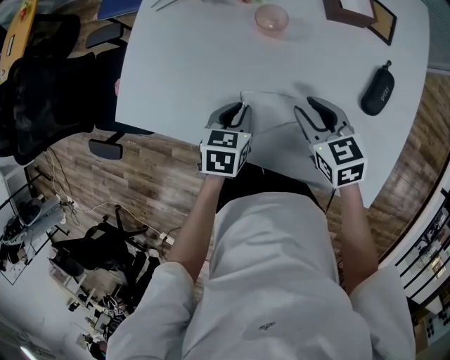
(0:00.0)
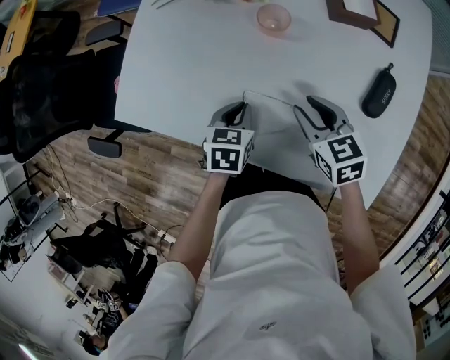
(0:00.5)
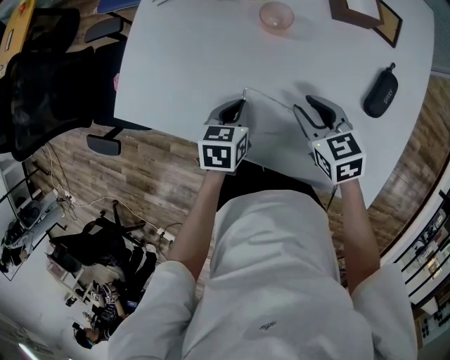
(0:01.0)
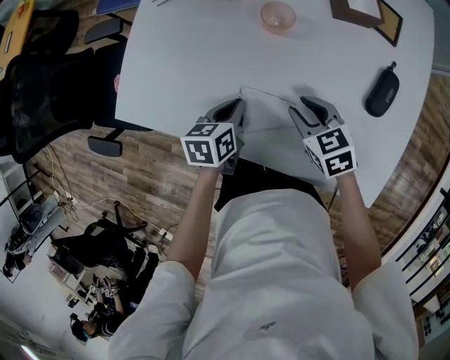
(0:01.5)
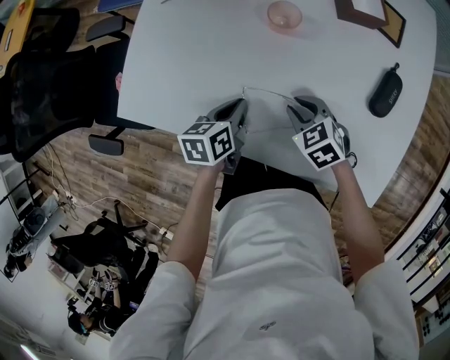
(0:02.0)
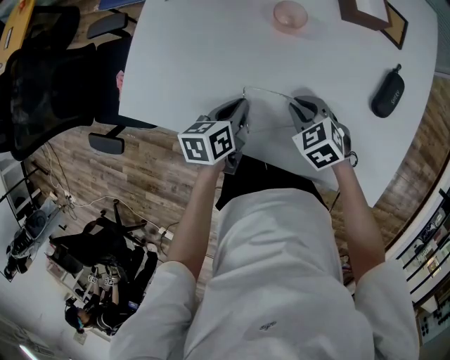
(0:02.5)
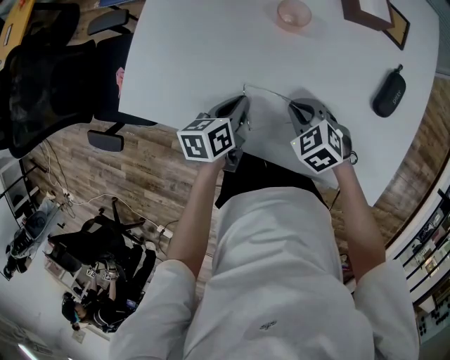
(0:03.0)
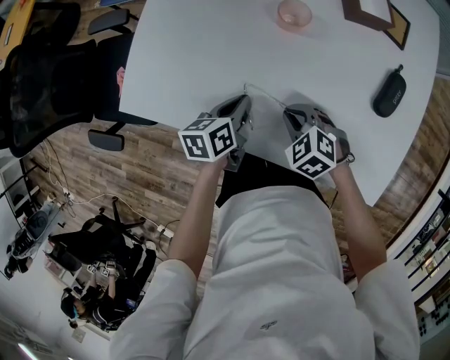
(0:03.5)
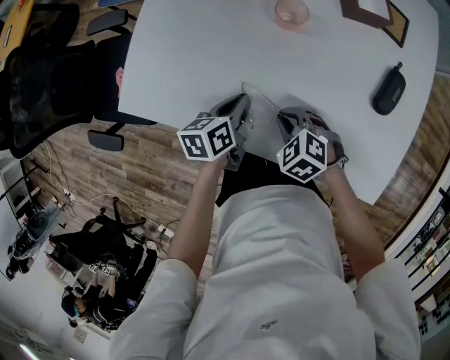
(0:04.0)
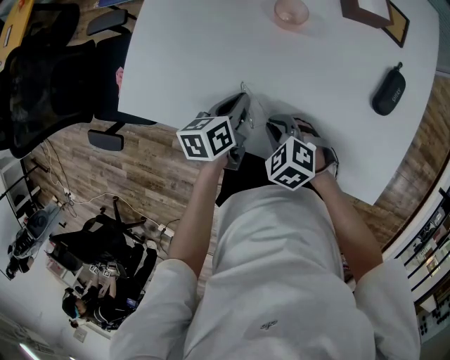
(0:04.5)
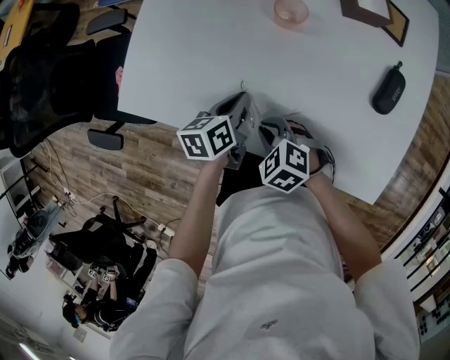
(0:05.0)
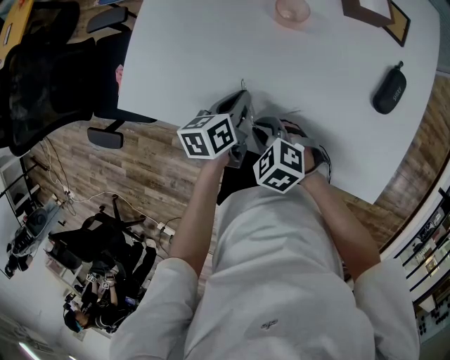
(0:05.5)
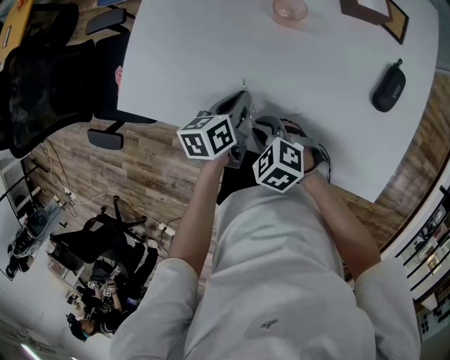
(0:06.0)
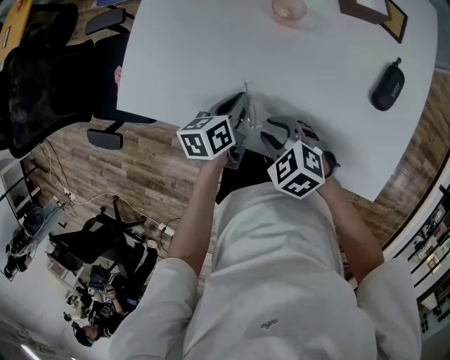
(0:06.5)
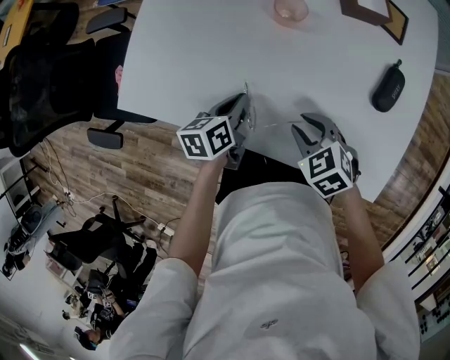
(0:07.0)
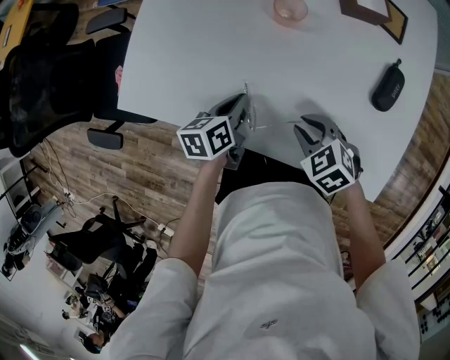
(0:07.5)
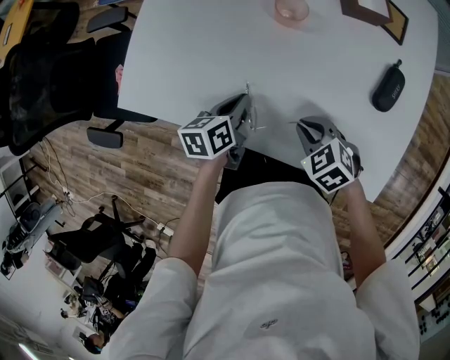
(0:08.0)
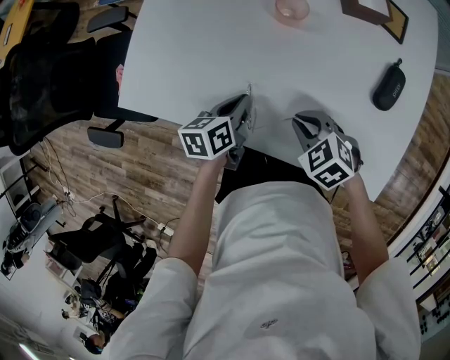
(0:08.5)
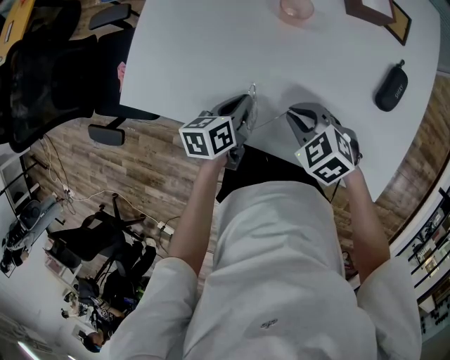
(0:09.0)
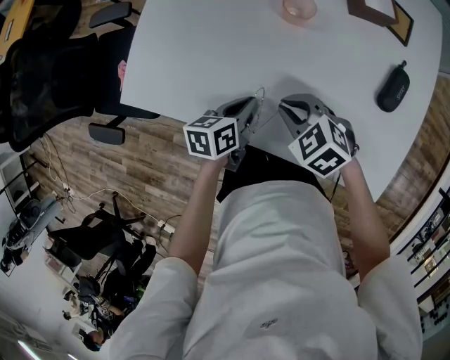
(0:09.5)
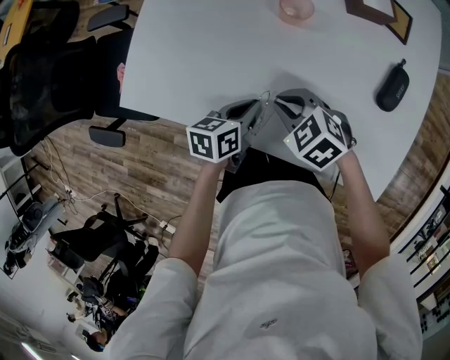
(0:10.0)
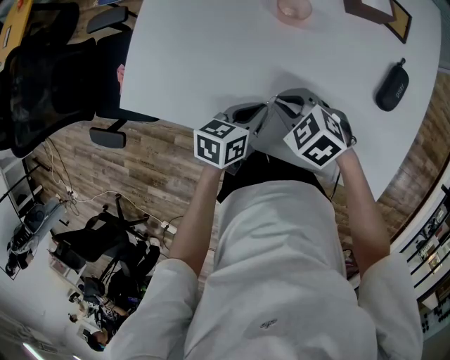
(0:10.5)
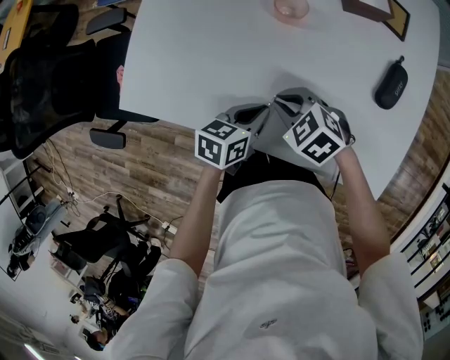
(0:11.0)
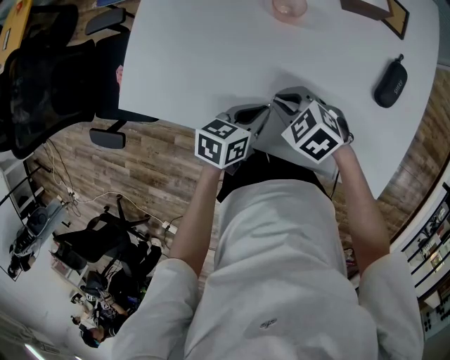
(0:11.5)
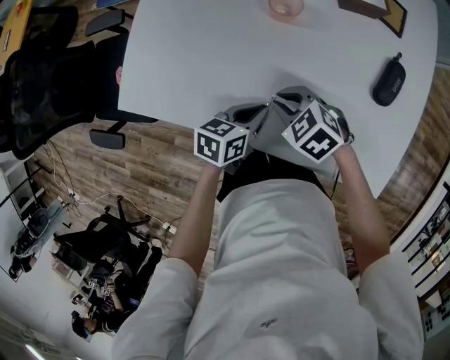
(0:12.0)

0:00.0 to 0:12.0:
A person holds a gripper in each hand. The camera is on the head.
0:00.0 to 0:02.0: The left gripper swivels some 30 degrees. The right gripper travels downward by about 10 cm, and rotates some 20 degrees.
0:02.0 to 0:04.0: The right gripper shifts by approximately 5 cm.
0:04.0 to 0:06.0: The right gripper travels to the left by about 5 cm.
0:06.0 to 0:08.0: The right gripper travels to the right by approximately 10 cm.
0:08.0 to 0:10.0: The right gripper goes about 10 cm to the left and forward.
0:10.0 to 0:12.0: The grippers move only a little.

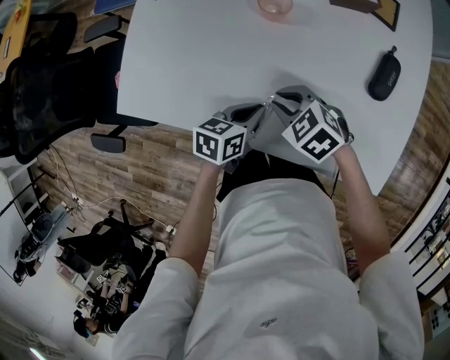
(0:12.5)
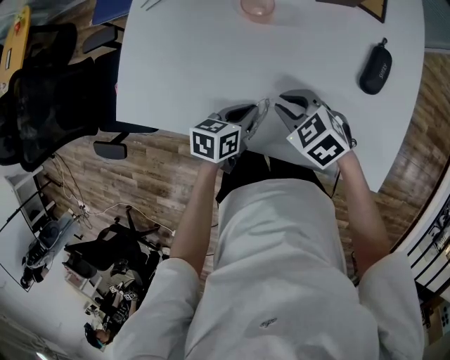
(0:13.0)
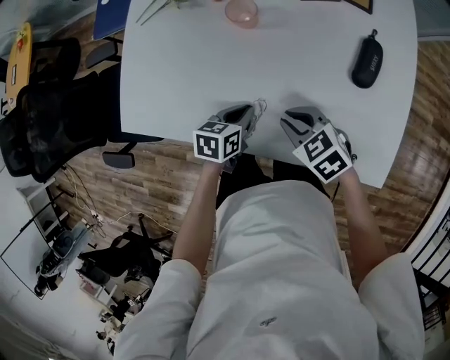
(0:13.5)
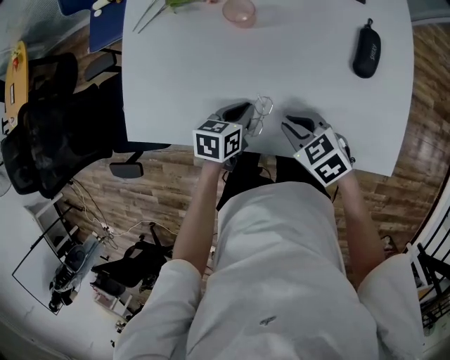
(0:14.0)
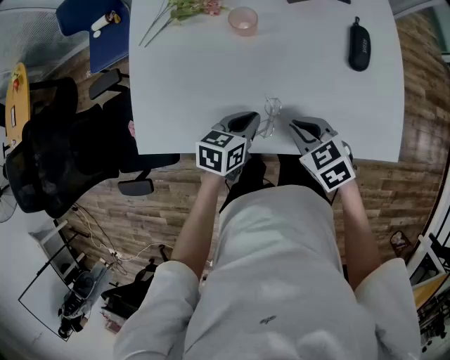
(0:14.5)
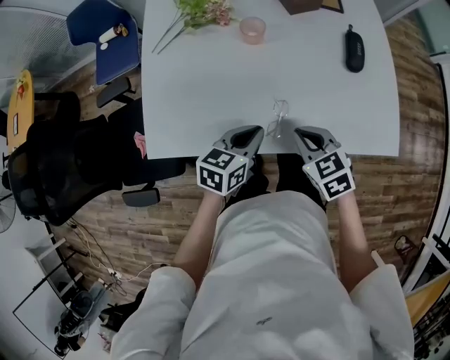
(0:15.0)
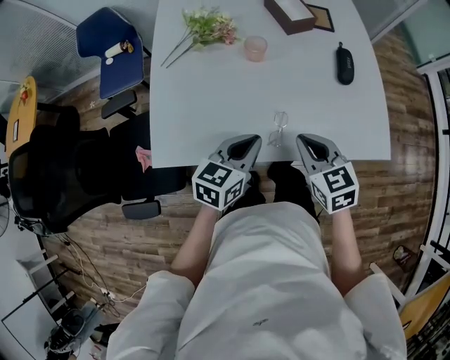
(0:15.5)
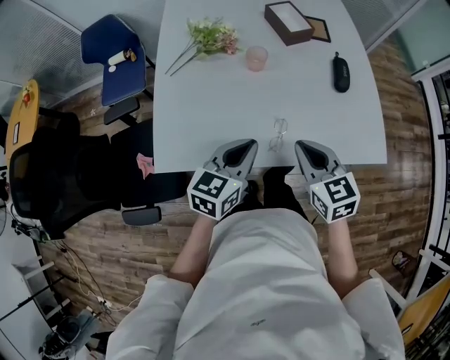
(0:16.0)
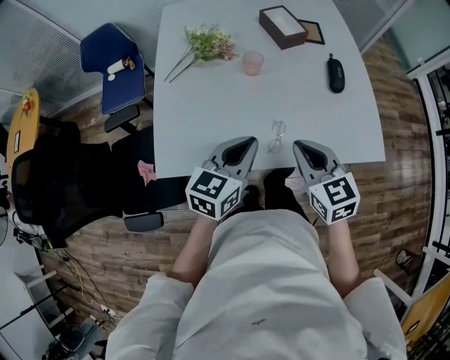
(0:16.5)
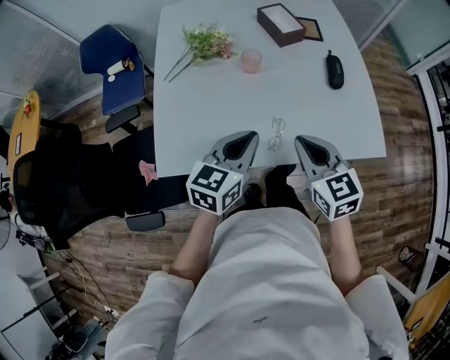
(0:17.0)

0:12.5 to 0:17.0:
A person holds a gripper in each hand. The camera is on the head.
0:12.5 to 0:14.5: The right gripper shifts approximately 5 cm backward, and swivels roughly 30 degrees.
0:14.5 to 0:17.0: The two grippers go about 15 cm upward. The right gripper rotates approximately 30 degrees. The left gripper changes its angle by roughly 30 degrees.

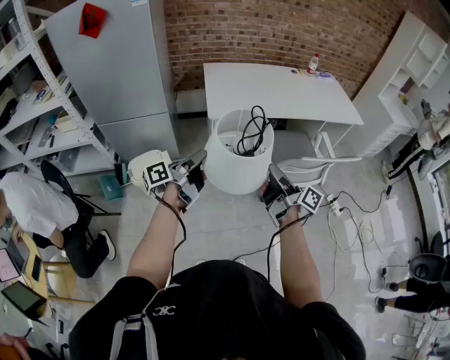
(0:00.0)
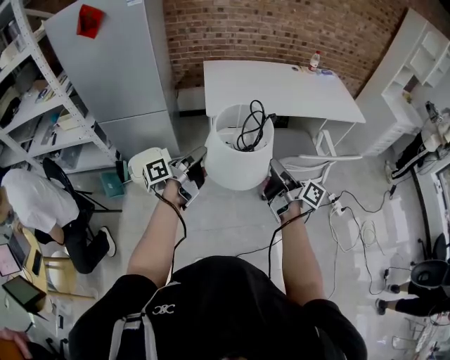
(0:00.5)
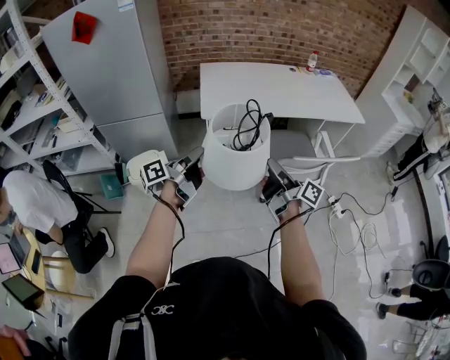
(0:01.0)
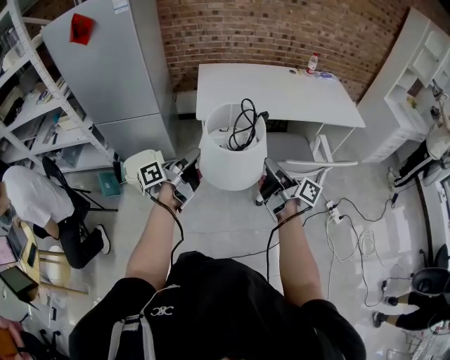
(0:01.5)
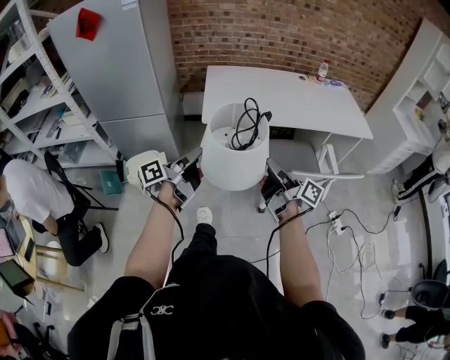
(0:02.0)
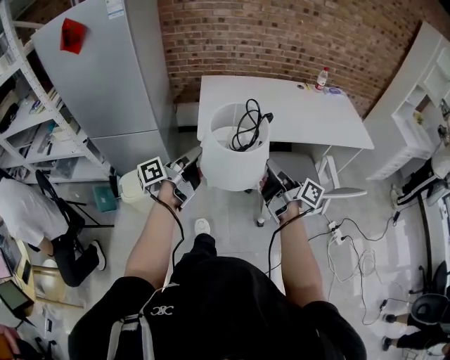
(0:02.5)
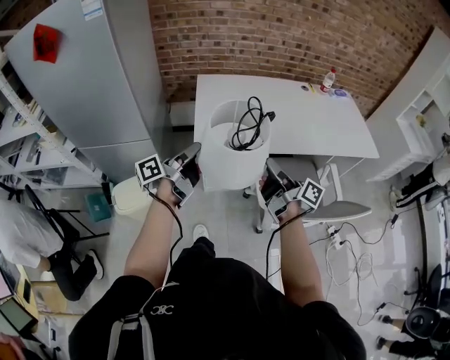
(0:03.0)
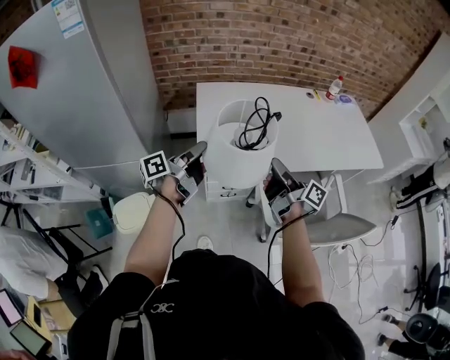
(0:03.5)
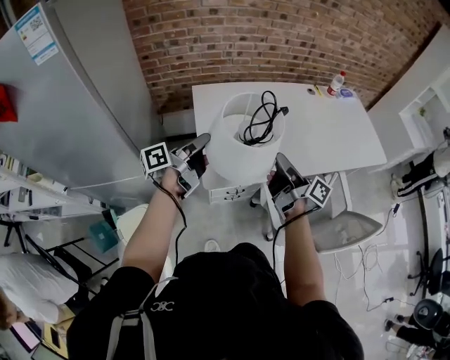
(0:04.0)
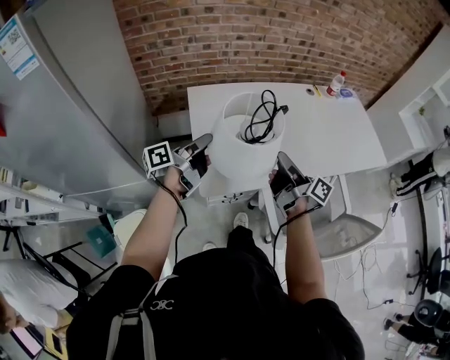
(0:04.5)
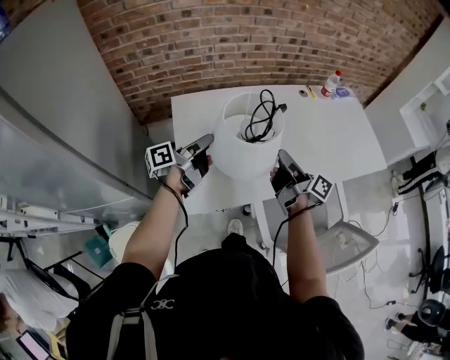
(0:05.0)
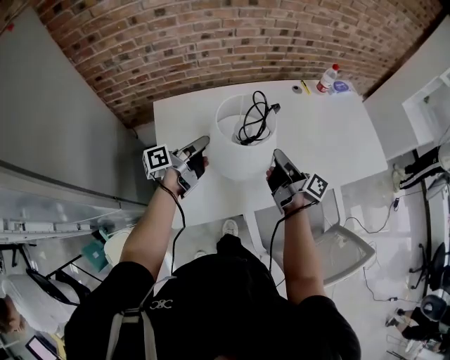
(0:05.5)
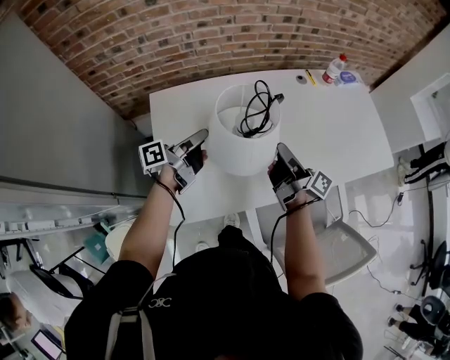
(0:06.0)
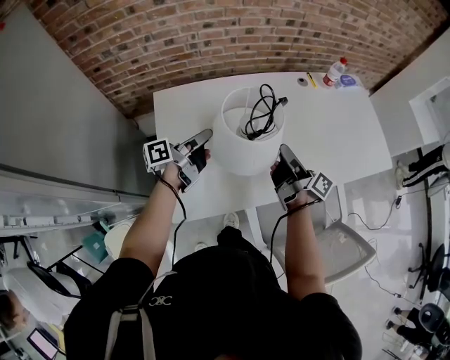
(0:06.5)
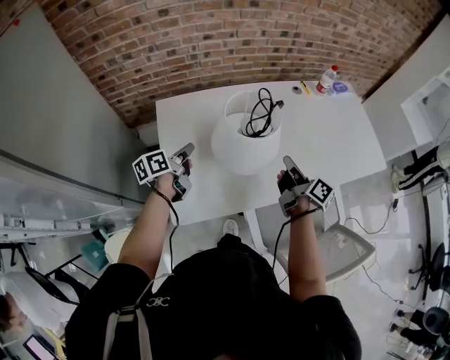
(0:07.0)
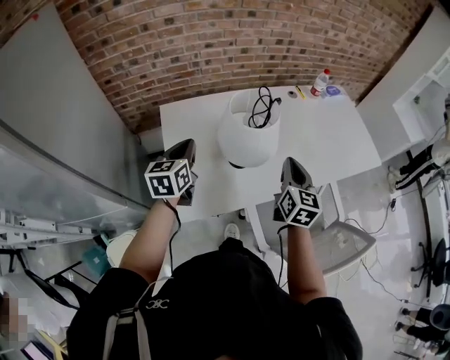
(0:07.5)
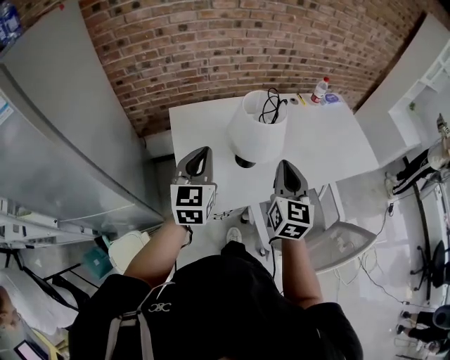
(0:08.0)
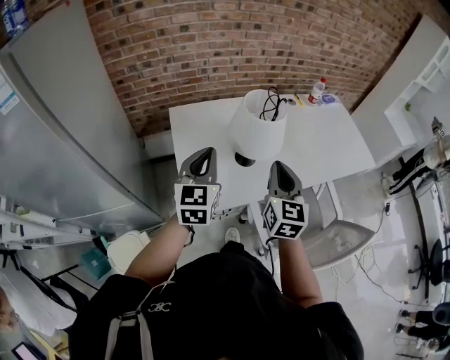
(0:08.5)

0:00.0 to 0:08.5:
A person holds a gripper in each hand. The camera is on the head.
0:00.0 to 0:02.0: The right gripper moves forward and to the right, about 10 cm, while the left gripper goes roughly 10 cm to the right.
0:02.0 to 0:04.0: The two grippers travel together, forward, some 40 cm.
0:04.0 to 0:06.5: Both grippers travel together forward and to the right, about 25 cm.
0:06.5 to 0:08.5: The right gripper shifts some 25 cm backward, upward and to the left, rolls counterclockwise, seen from behind, by some 80 degrees, and closes its fingers. The left gripper goes about 25 cm backward and upward, twists roughly 70 degrees clockwise, seen from behind, and closes.

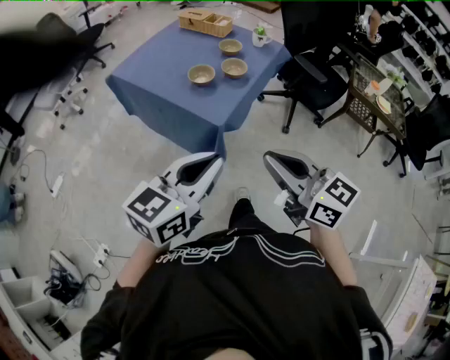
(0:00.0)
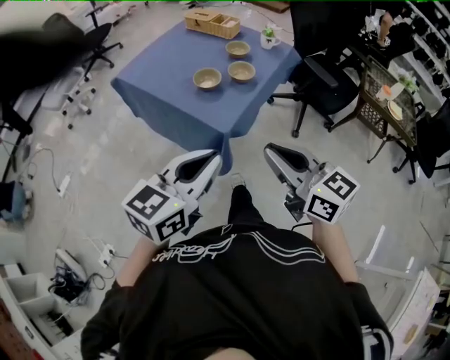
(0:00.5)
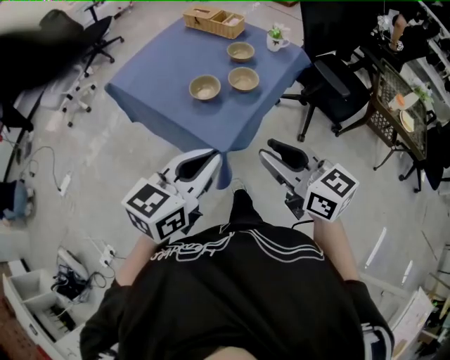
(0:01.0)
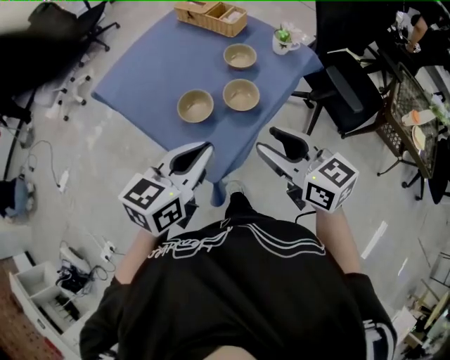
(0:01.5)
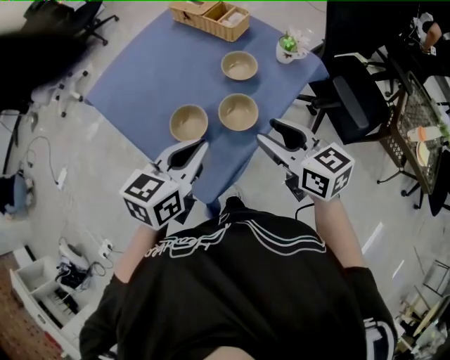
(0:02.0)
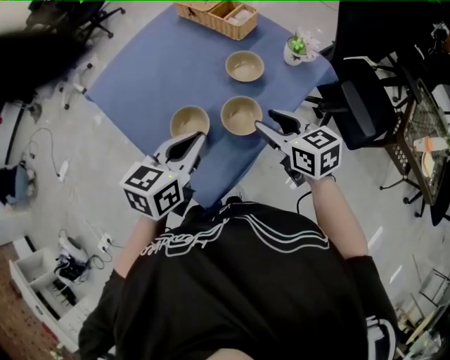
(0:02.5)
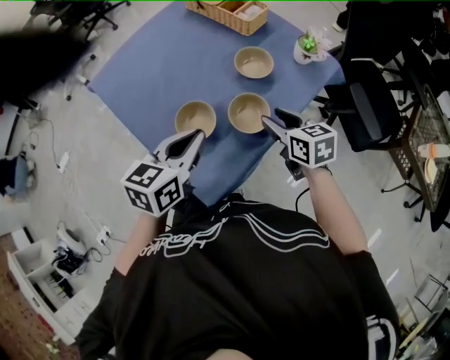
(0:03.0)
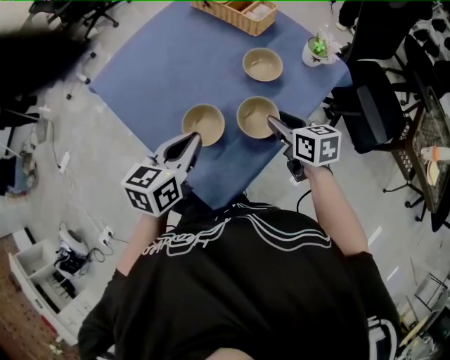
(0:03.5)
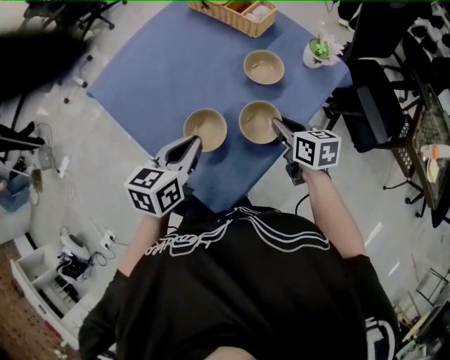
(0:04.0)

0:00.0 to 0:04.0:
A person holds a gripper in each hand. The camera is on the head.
0:00.0 to 0:02.0: The pair of grippers is taken forward, some 40 cm. The right gripper opens its fingers. The left gripper rotates roughly 20 degrees.
0:02.0 to 0:04.0: The left gripper goes some 15 cm downward, to the left and forward, while the right gripper is displaced downward and forward by about 20 cm, rotates about 20 degrees, and closes its fingers.
